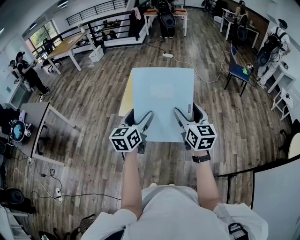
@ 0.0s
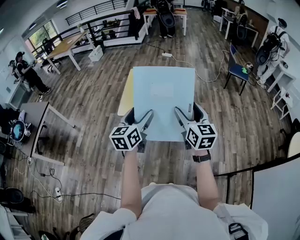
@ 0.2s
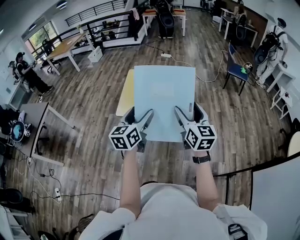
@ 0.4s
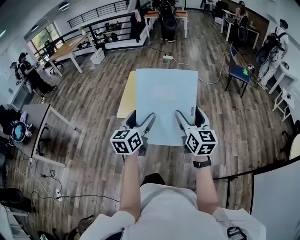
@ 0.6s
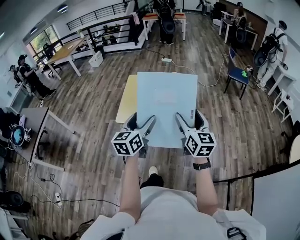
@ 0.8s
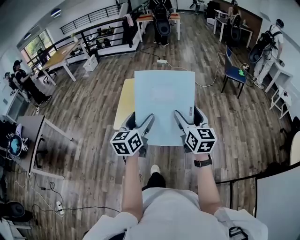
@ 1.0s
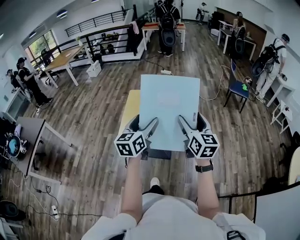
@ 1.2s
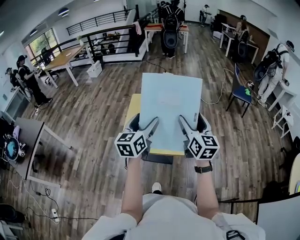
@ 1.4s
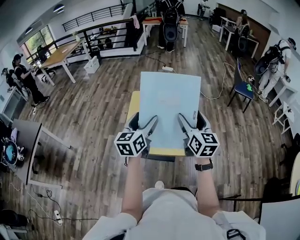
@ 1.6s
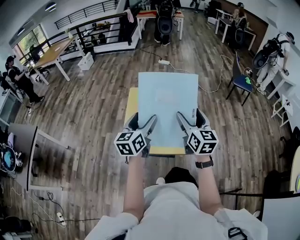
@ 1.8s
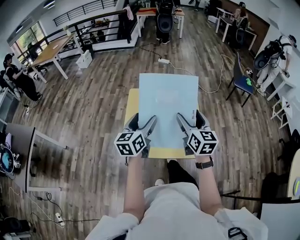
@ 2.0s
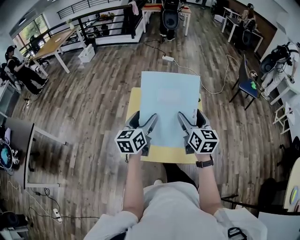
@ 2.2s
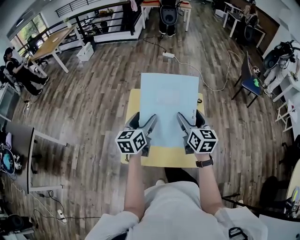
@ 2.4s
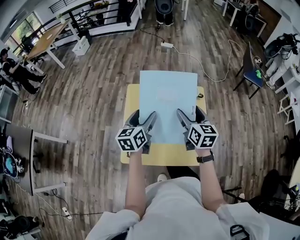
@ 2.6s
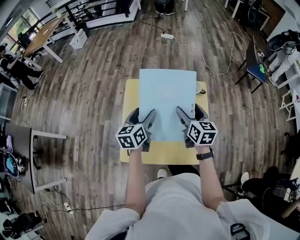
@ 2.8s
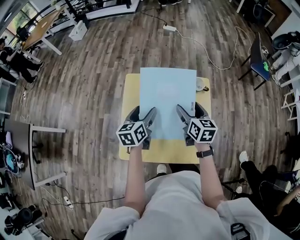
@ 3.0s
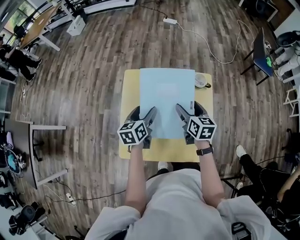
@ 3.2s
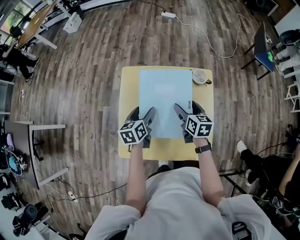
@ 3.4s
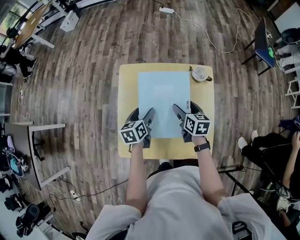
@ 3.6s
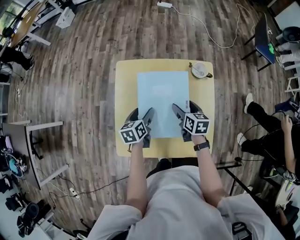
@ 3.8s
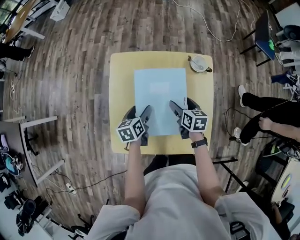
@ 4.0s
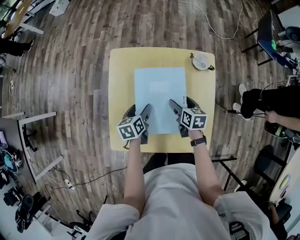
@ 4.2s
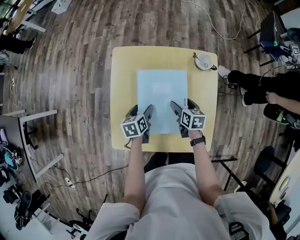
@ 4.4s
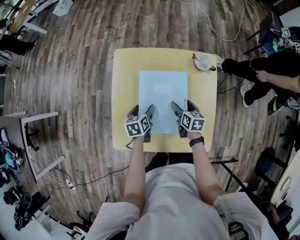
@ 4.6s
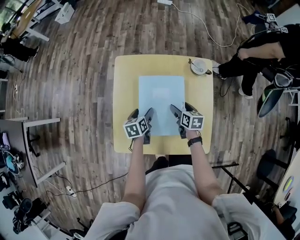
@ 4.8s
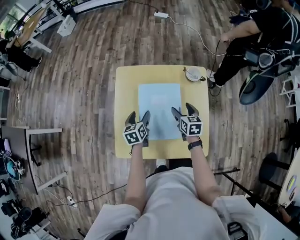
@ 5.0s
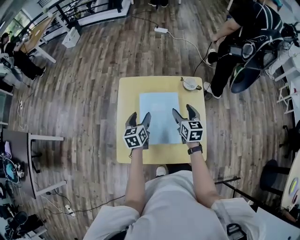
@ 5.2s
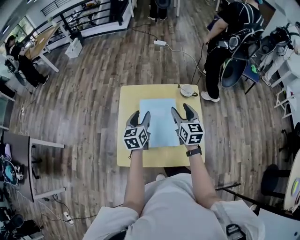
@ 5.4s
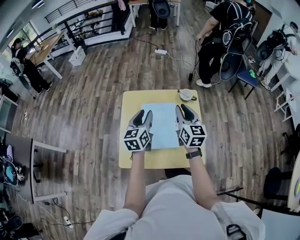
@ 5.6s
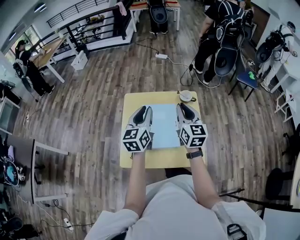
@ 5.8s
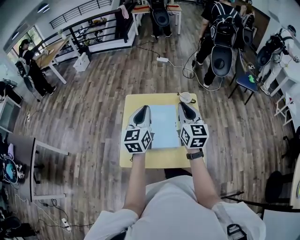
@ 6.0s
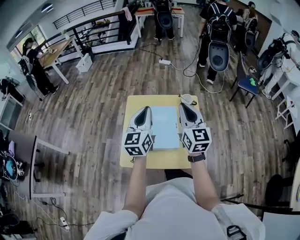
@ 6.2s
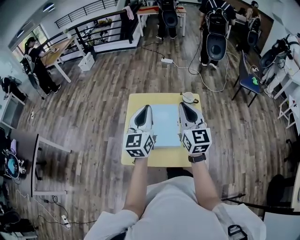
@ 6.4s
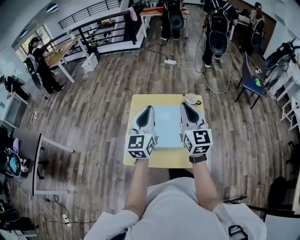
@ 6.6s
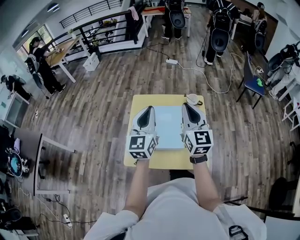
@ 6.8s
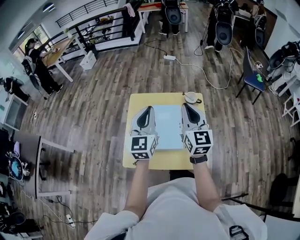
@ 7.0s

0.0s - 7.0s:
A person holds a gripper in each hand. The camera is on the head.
0.0s - 1.4s: Both grippers travel together forward, approximately 20 cm.
1.4s - 2.8s: The grippers both shift forward and downward by roughly 35 cm. The left gripper changes its angle by about 20 degrees, while the right gripper changes its angle by some 20 degrees.
2.8s - 4.2s: The two grippers go about 25 cm downward. The left gripper changes its angle by approximately 30 degrees. The right gripper swivels some 30 degrees.
4.2s - 5.6s: Both grippers move upward, about 25 cm. The left gripper tilts its fingers approximately 30 degrees upward, and closes its fingers; the right gripper angles its fingers upward, by about 40 degrees, and closes.
5.6s - 7.0s: The two grippers go some 10 cm upward. The left gripper changes its angle by some 30 degrees, and closes.

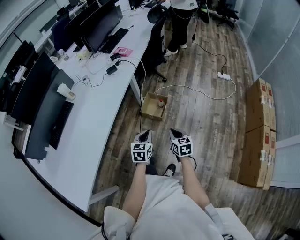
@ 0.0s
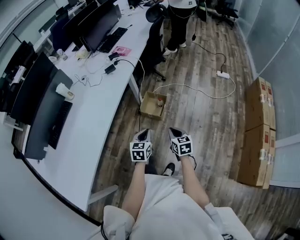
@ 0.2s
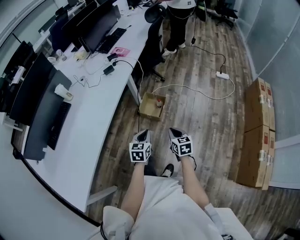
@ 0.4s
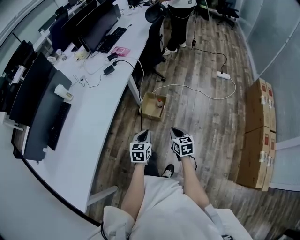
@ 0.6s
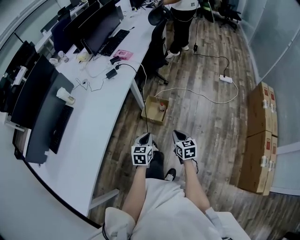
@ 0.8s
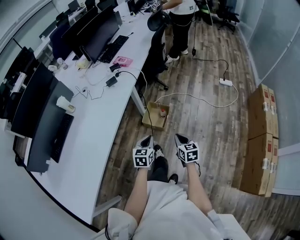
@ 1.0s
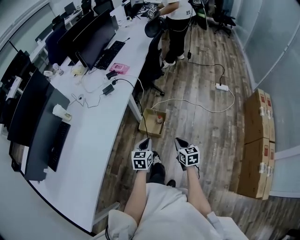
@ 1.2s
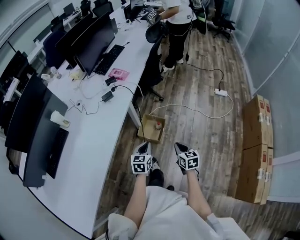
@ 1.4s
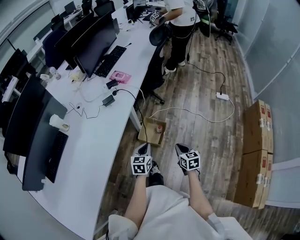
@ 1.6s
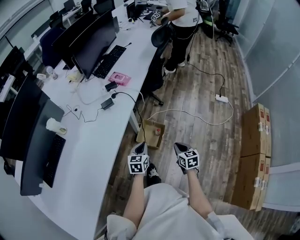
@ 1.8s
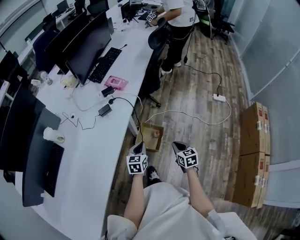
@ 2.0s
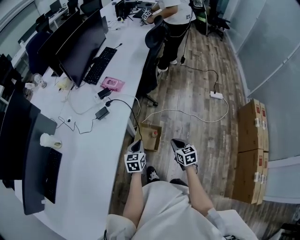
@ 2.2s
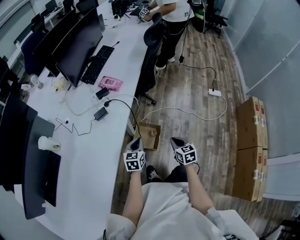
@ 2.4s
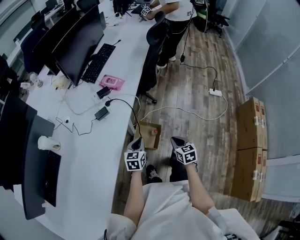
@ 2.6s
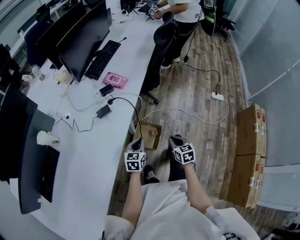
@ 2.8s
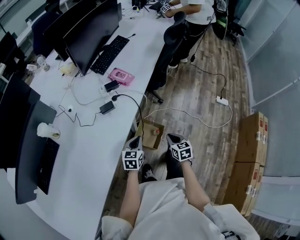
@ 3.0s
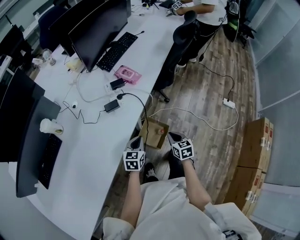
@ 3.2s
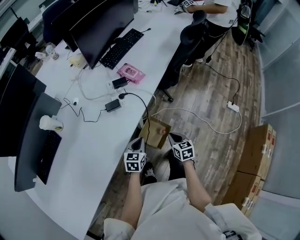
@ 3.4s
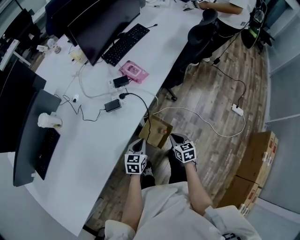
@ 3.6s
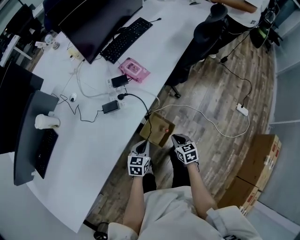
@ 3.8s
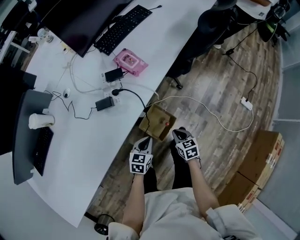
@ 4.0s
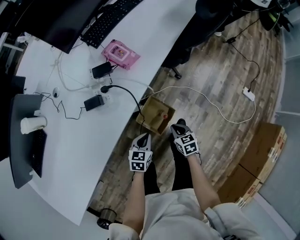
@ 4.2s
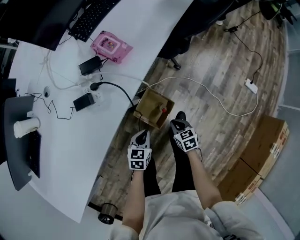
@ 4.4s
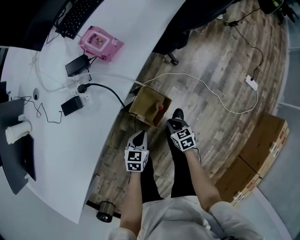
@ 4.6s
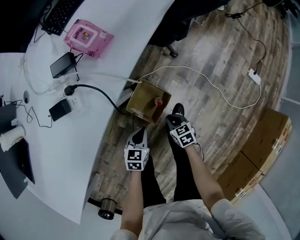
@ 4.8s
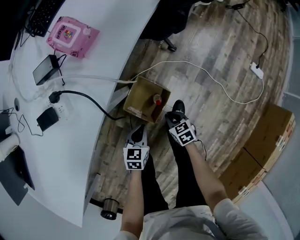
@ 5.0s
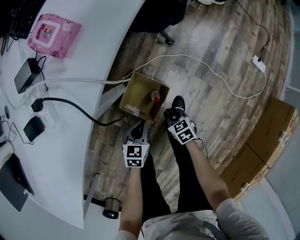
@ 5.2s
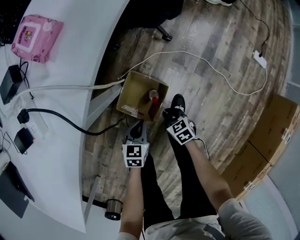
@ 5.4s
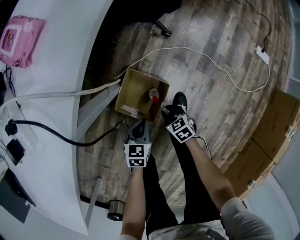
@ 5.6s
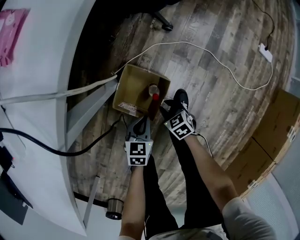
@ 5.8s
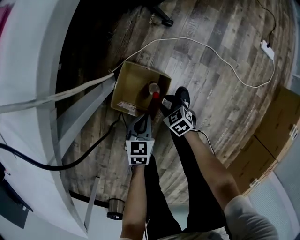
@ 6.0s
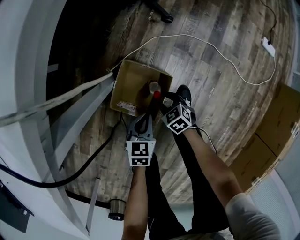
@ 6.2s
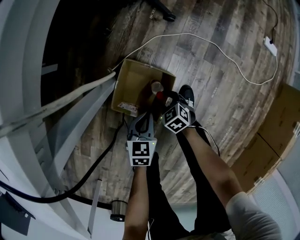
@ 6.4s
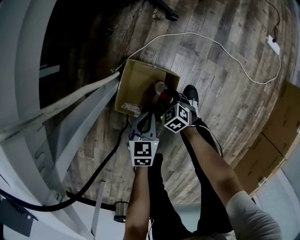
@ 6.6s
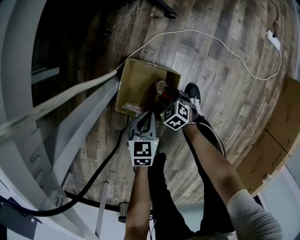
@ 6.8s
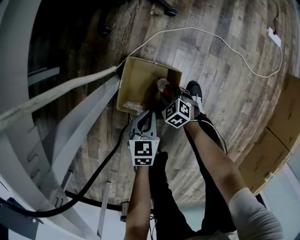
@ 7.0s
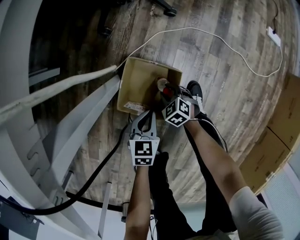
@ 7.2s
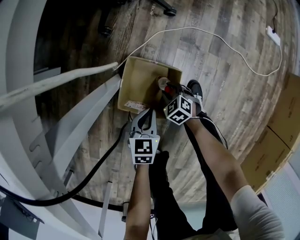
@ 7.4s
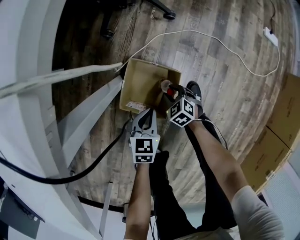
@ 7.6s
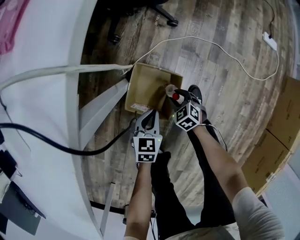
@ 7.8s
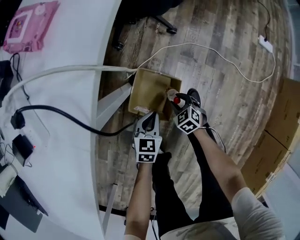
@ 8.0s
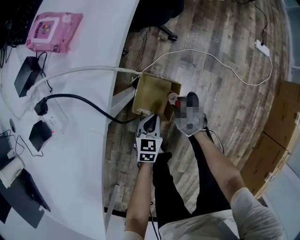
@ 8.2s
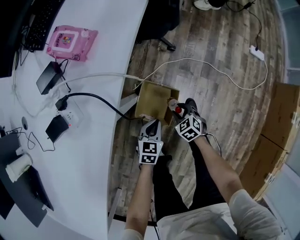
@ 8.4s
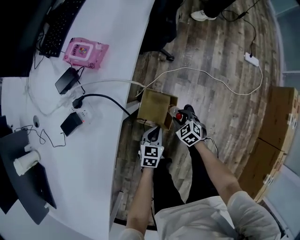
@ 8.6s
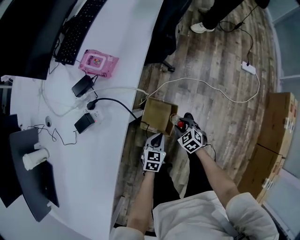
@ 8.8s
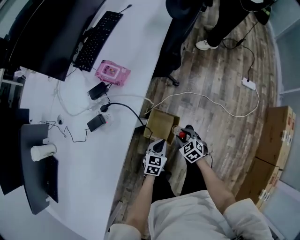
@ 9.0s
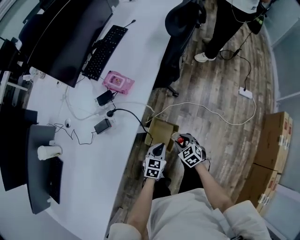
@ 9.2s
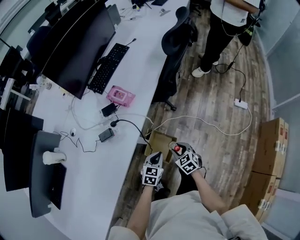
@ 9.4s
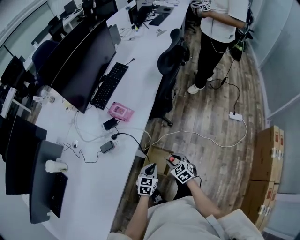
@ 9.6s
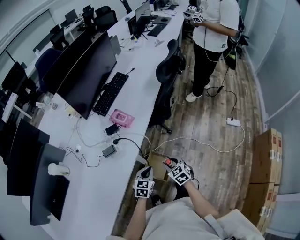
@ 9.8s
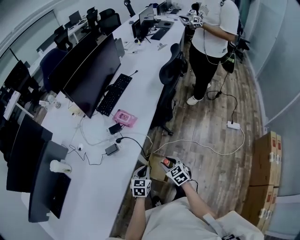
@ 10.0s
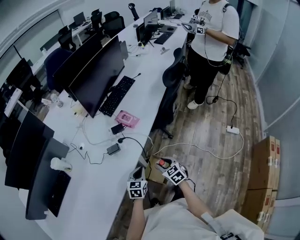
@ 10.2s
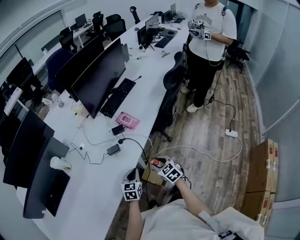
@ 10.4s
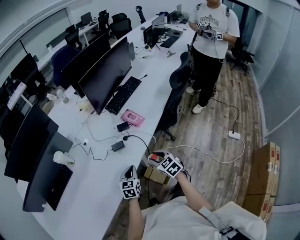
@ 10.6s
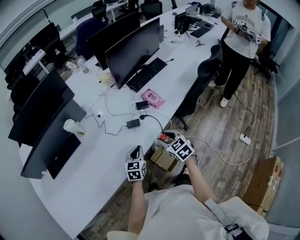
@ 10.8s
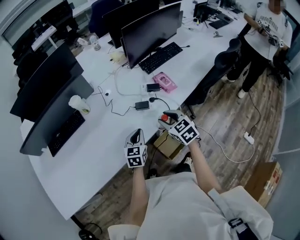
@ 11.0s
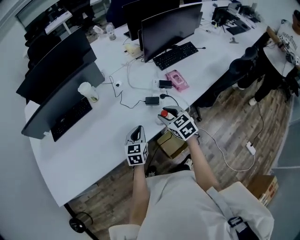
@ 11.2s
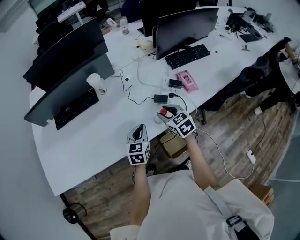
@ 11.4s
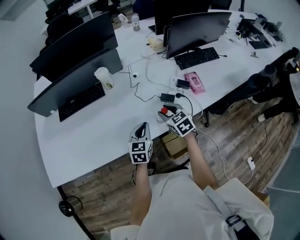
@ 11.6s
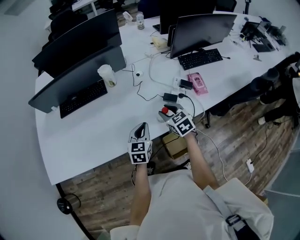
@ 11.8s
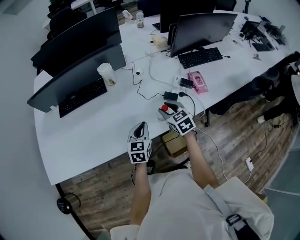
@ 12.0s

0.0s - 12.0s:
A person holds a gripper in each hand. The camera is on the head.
0.0s - 1.6s: The grippers both shift forward by approximately 20 cm.
1.6s - 3.0s: The two grippers go approximately 20 cm forward and to the left.
3.0s - 4.4s: The right gripper travels downward and forward by roughly 25 cm, and turns by some 20 degrees. The left gripper is displaced downward and to the right by some 20 cm.
4.4s - 6.0s: Both grippers move downward, approximately 35 cm. The right gripper opens up.
6.0s - 7.6s: The right gripper travels downward by about 5 cm.
7.6s - 9.0s: Both grippers travel together upward, some 40 cm.
9.0s - 10.4s: Both grippers move upward and to the left, approximately 30 cm. The left gripper turns by about 30 degrees.
10.4s - 12.0s: The right gripper moves roughly 30 cm, and changes its angle by about 30 degrees, while the left gripper moves about 25 cm, and rotates approximately 40 degrees.

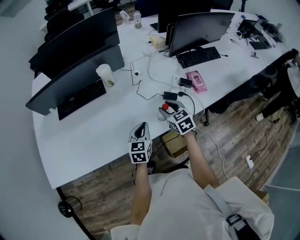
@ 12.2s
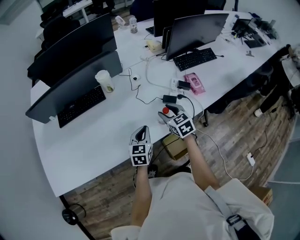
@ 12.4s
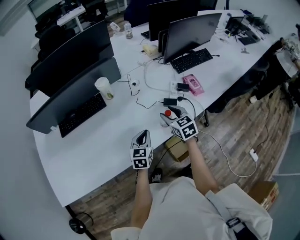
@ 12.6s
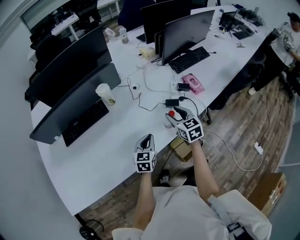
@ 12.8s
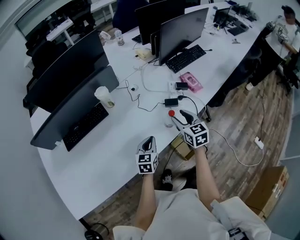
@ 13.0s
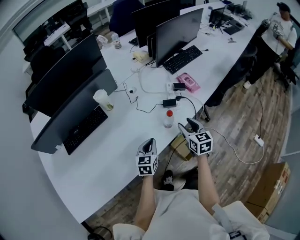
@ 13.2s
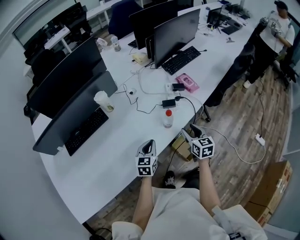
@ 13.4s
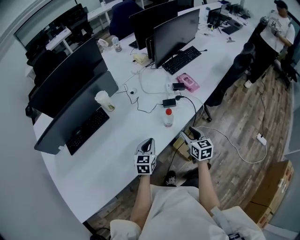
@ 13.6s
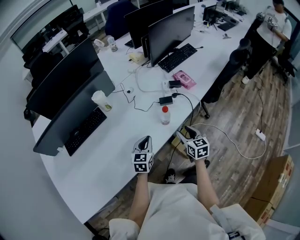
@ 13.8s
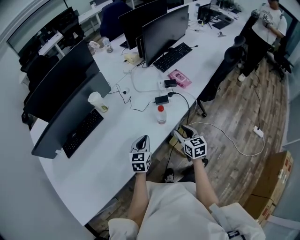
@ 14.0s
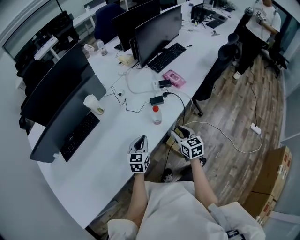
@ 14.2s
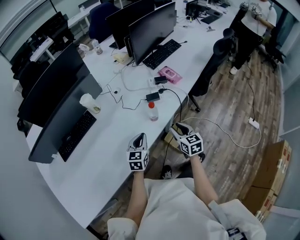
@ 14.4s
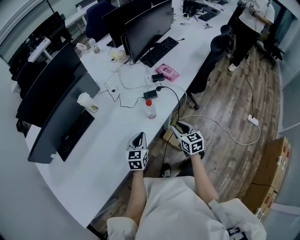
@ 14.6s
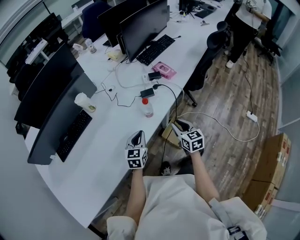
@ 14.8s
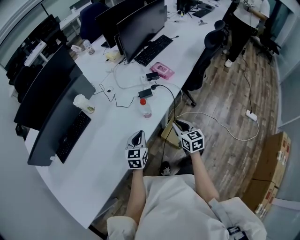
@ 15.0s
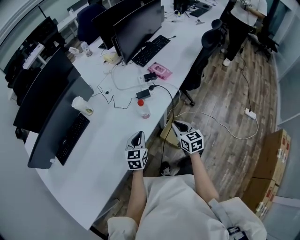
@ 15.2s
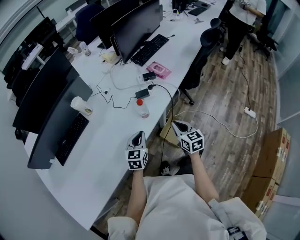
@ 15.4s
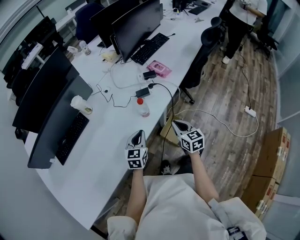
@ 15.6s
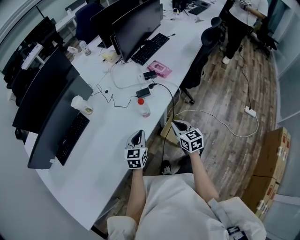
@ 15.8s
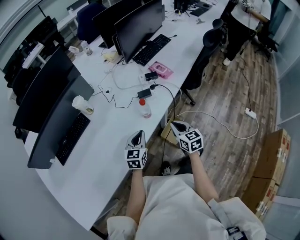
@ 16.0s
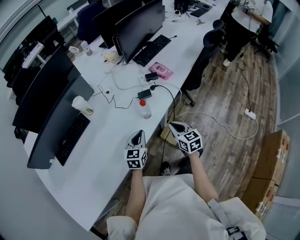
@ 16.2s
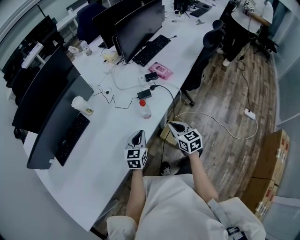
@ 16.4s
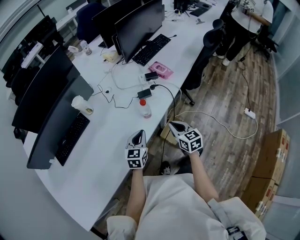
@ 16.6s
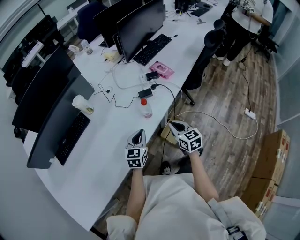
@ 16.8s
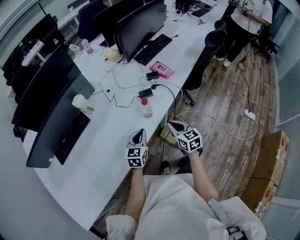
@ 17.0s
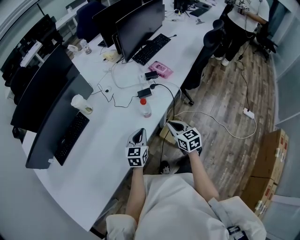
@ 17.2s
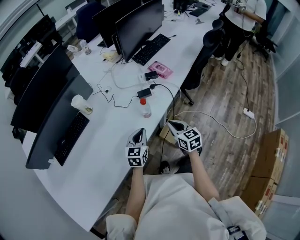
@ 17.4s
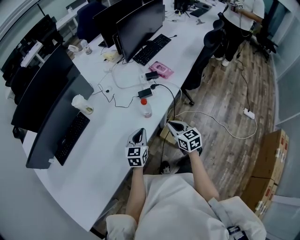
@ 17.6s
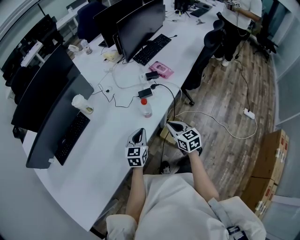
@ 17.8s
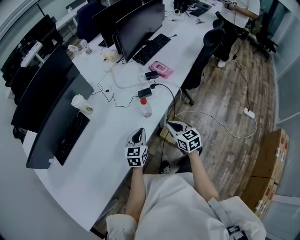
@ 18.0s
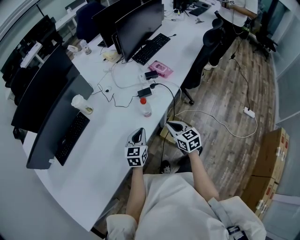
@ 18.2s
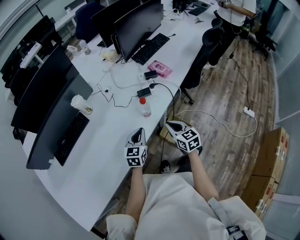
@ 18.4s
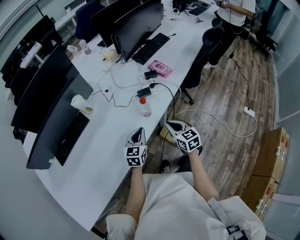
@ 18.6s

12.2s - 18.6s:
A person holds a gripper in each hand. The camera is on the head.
12.2s - 13.8s: The right gripper goes approximately 15 cm backward and to the right, and changes its angle by approximately 40 degrees, while the left gripper changes its angle by approximately 20 degrees.
13.8s - 15.4s: Both grippers travel together to the right, approximately 5 cm. The right gripper closes.
15.4s - 17.0s: There are only small adjustments of the grippers.
17.0s - 18.6s: Both grippers stay about where they are.
